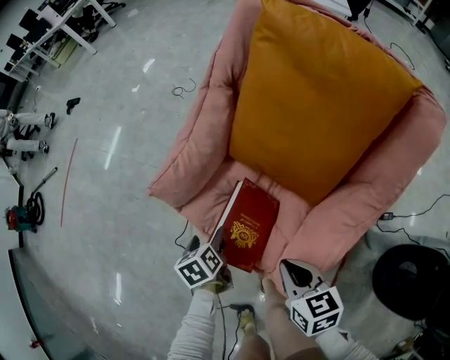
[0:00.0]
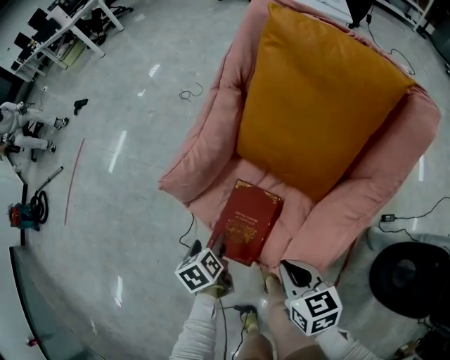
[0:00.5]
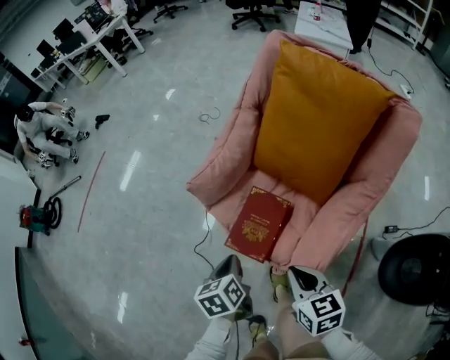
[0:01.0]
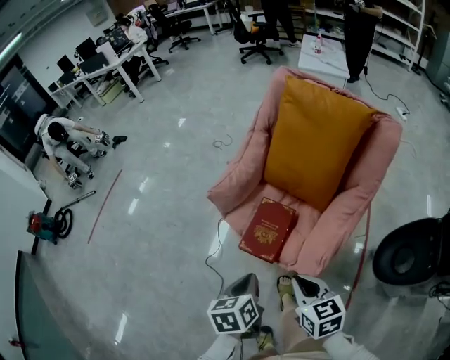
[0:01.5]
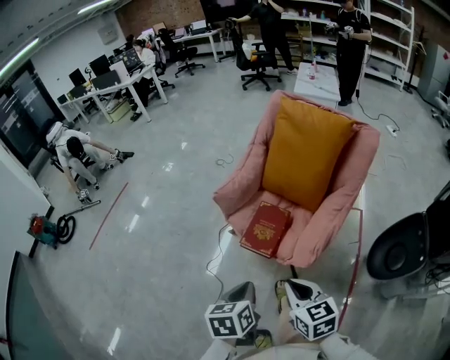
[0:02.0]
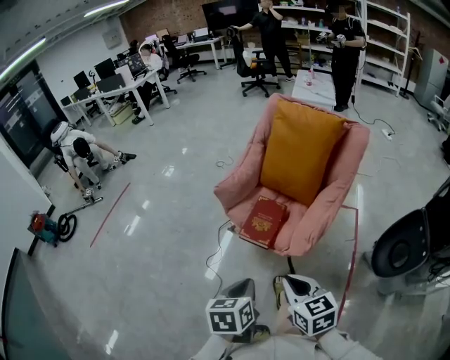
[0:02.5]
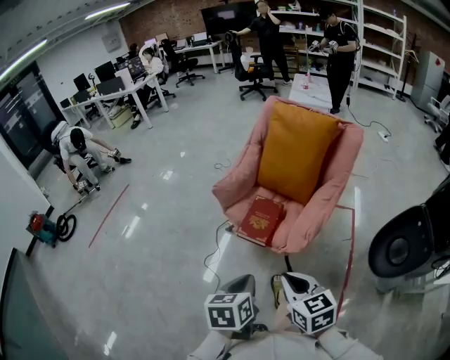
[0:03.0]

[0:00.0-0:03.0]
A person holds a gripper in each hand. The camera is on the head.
0:00.0 to 0:01.5: The left gripper moves upward and backward, some 30 cm, changes its angle by roughly 20 degrees, and closes up. Meanwhile the right gripper travels backward, upward and to the left by roughly 20 cm.
0:01.5 to 0:03.0: Both grippers travel together backward and upward, approximately 20 cm.

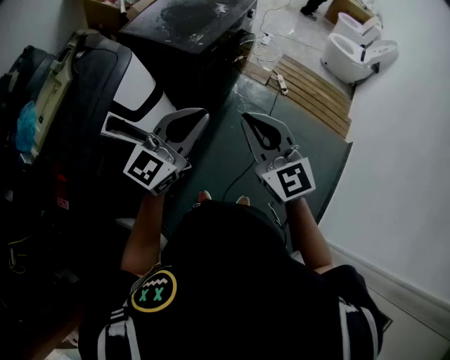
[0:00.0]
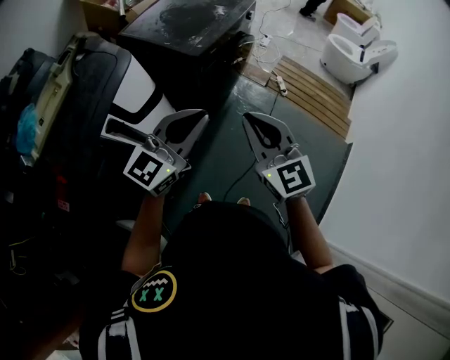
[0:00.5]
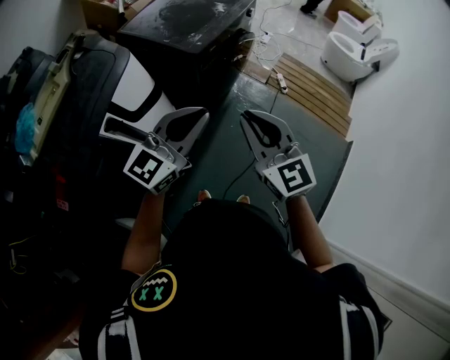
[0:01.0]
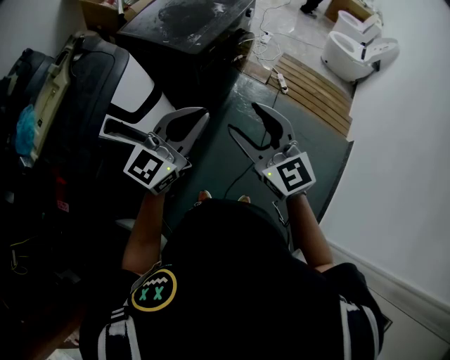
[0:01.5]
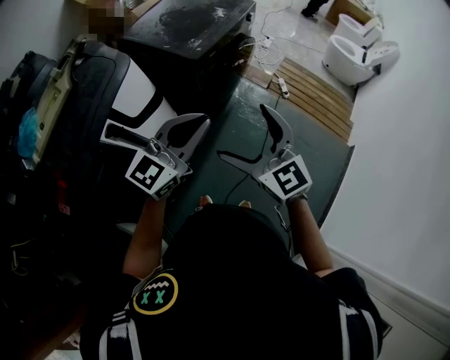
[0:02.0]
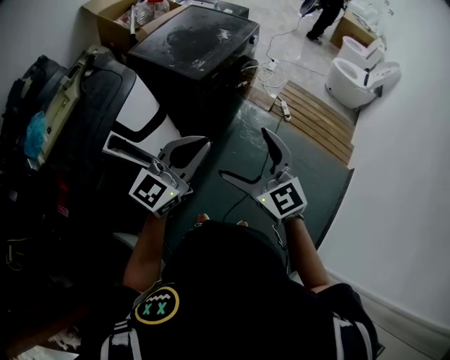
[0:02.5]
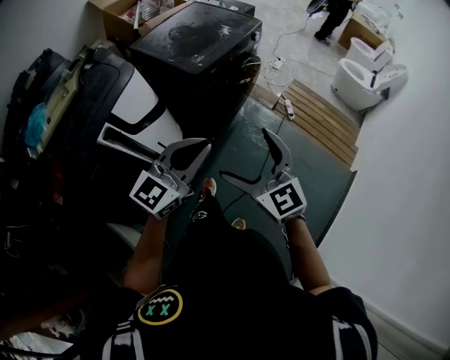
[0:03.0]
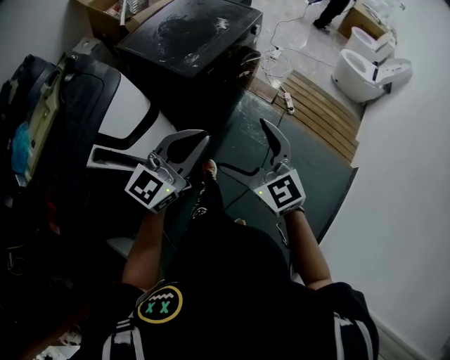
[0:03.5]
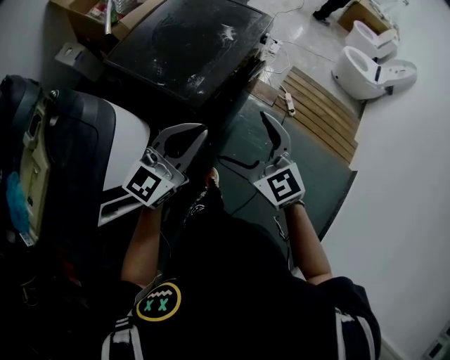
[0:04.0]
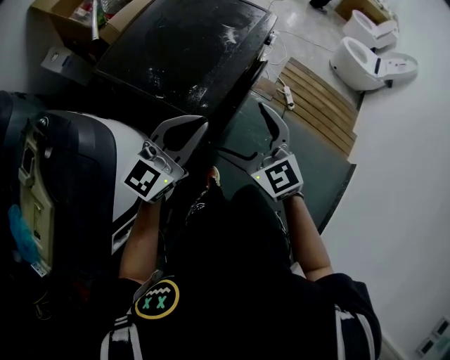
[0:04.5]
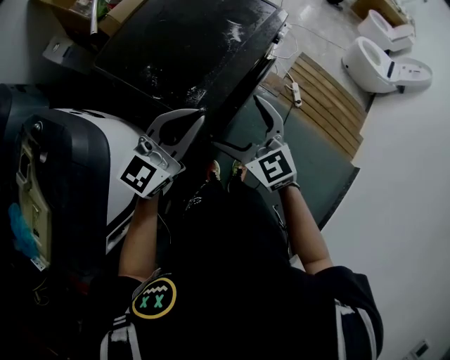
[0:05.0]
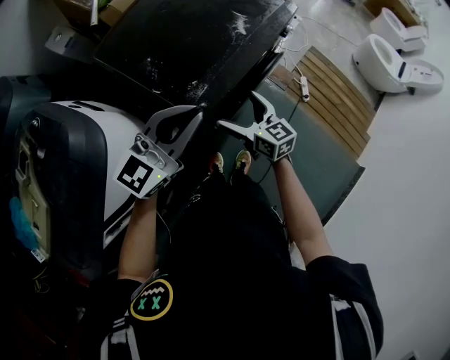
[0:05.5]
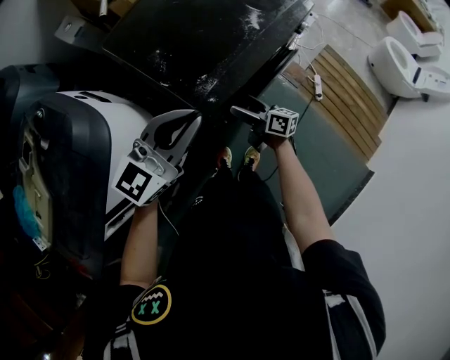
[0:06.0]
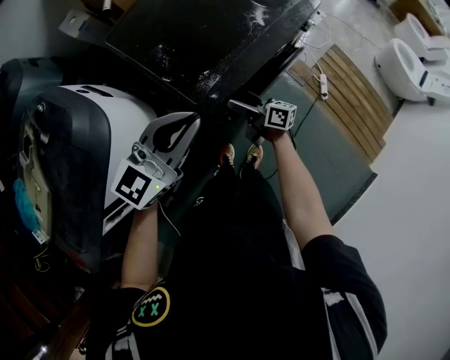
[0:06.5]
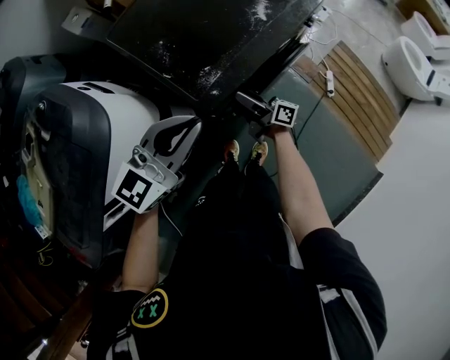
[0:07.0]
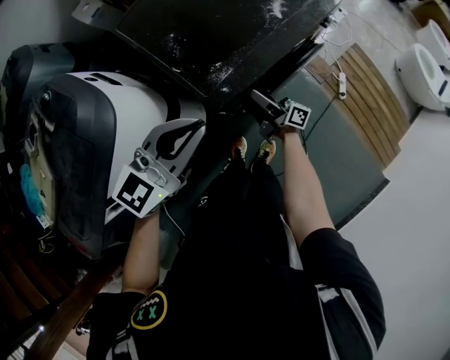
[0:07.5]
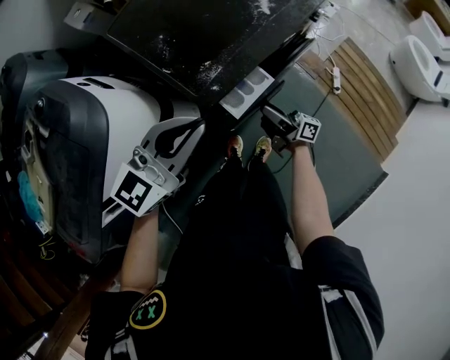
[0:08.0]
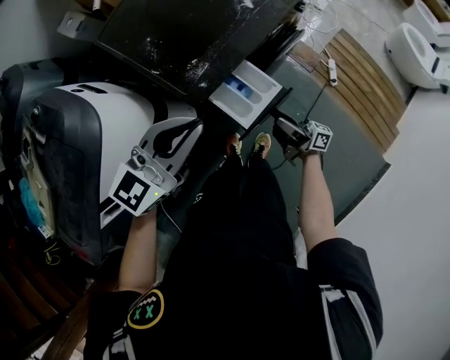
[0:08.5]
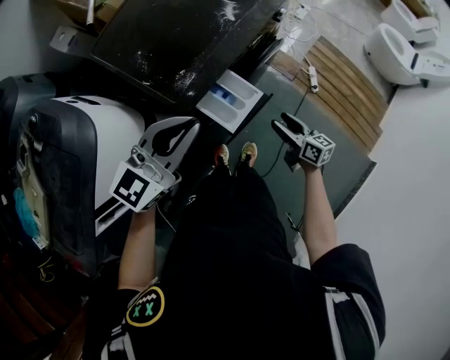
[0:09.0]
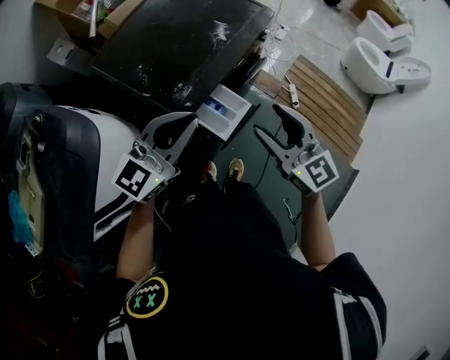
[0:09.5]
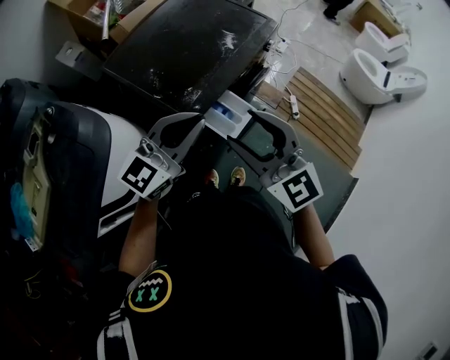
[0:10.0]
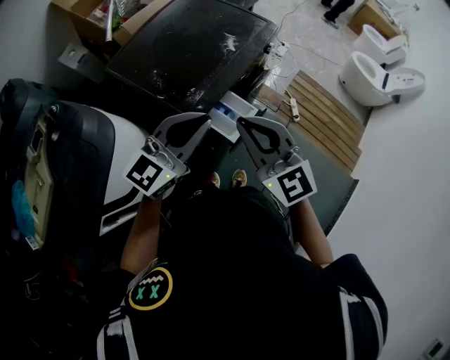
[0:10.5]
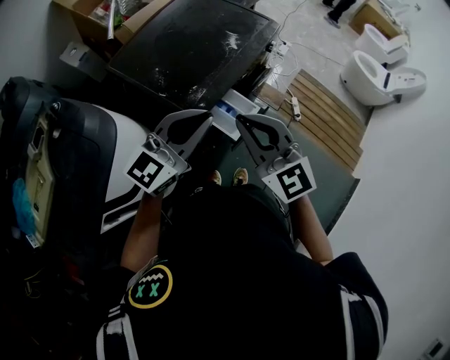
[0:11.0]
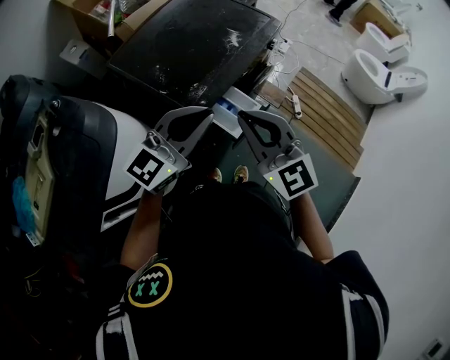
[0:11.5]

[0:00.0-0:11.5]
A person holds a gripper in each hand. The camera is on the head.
0:00.0 to 0:02.0: The right gripper opens.
0:02.0 to 0:04.0: The two grippers go about 30 cm forward.
0:04.0 to 0:06.0: The right gripper travels downward and forward by roughly 35 cm, and rolls clockwise, seen from behind, by approximately 70 degrees, while the left gripper is displaced forward by about 15 cm.
0:06.0 to 0:07.5: The right gripper changes its angle by some 30 degrees, and closes.
0:07.5 to 0:09.5: The right gripper travels upward, to the right and backward by some 35 cm, and rotates around the line of its fingers by roughly 80 degrees, counterclockwise from behind. The left gripper moves to the right and upward, some 10 cm.
0:09.5 to 0:11.5: The right gripper shifts some 10 cm to the left and upward, and closes up.

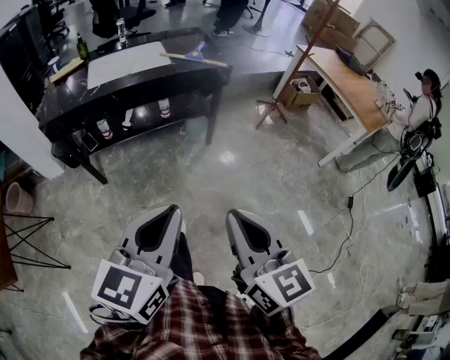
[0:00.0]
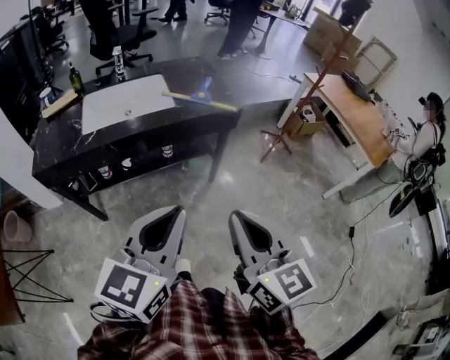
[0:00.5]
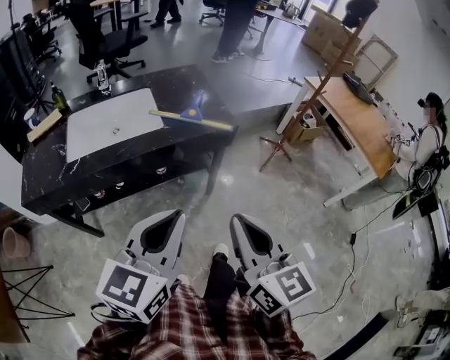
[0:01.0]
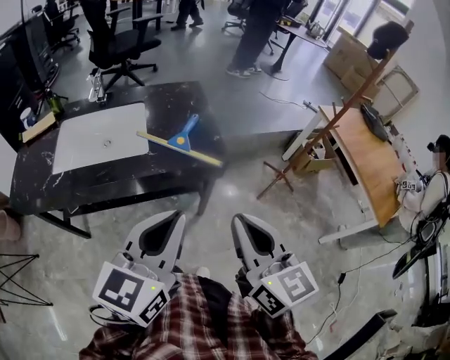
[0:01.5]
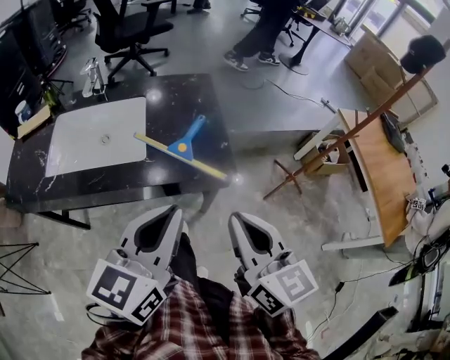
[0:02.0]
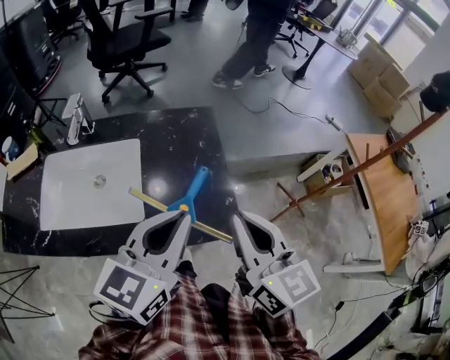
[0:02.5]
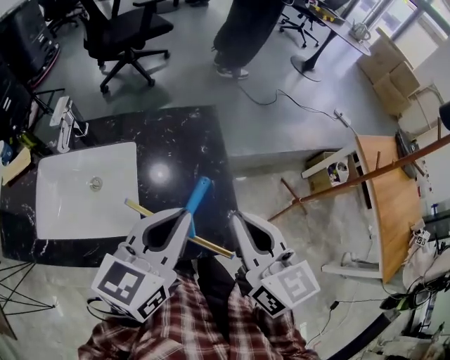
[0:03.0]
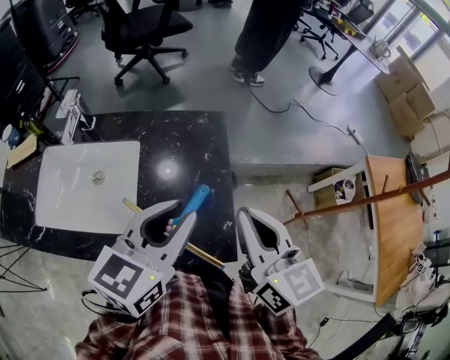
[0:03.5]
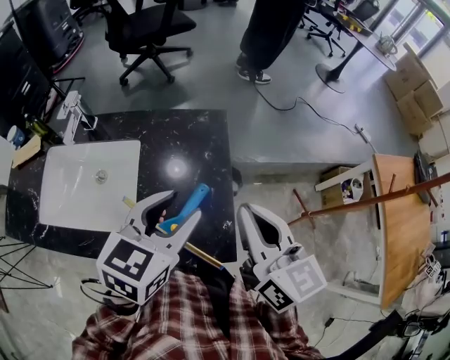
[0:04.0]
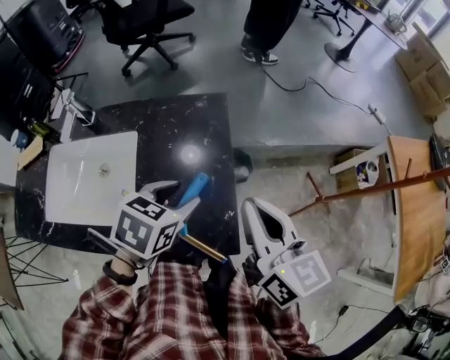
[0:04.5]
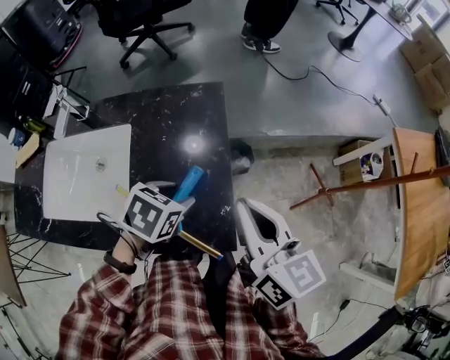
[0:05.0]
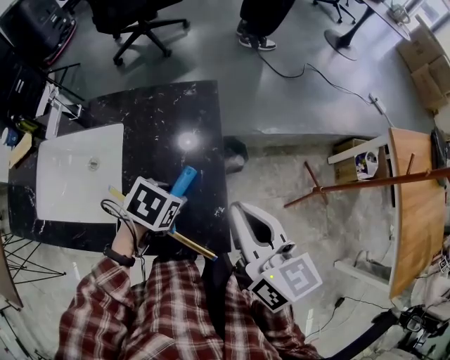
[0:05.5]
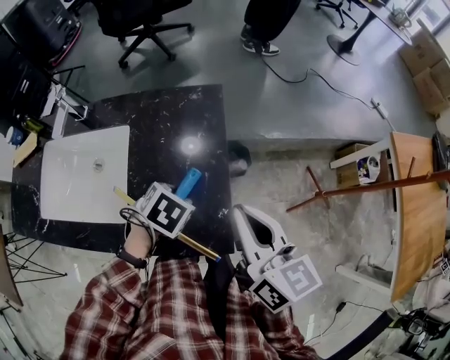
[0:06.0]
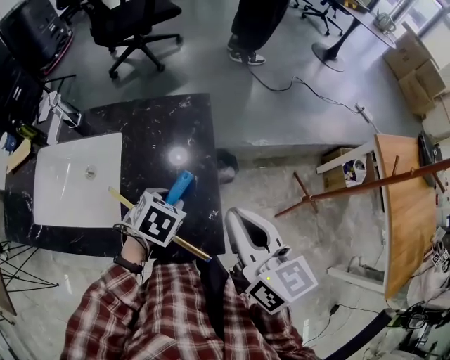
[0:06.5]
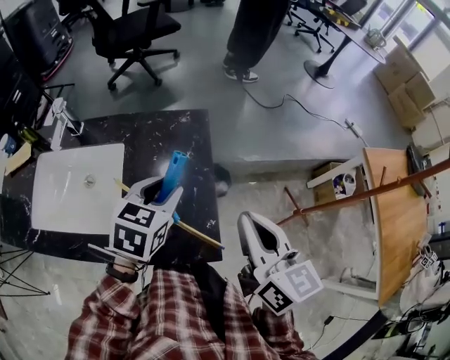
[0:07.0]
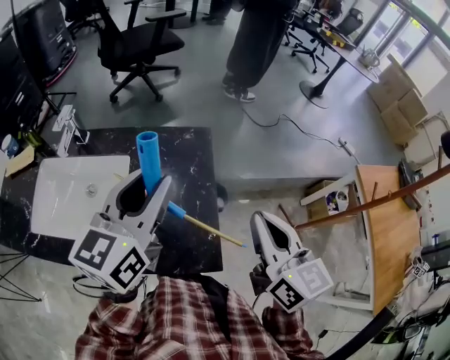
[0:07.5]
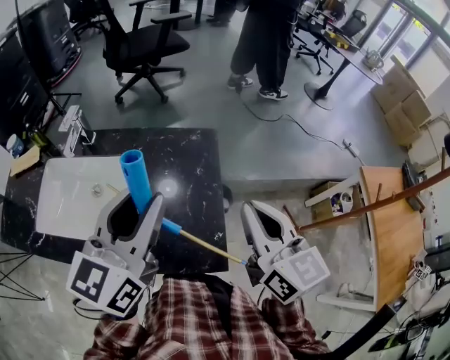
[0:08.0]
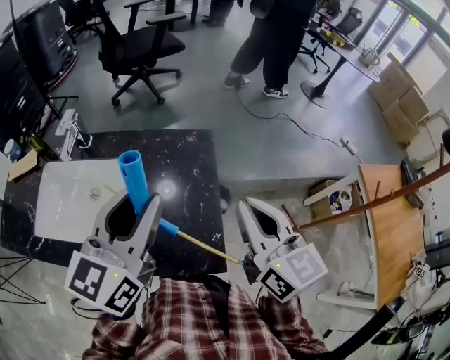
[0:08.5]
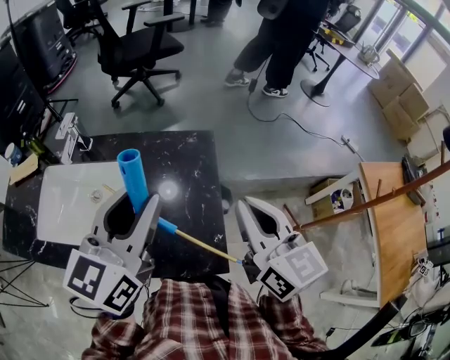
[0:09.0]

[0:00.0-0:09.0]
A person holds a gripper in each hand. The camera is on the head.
0:00.0 to 0:02.0: The two grippers travel together, forward, about 60 cm.
0:02.0 to 0:04.5: The right gripper moves forward, about 30 cm. Meanwhile the left gripper heads forward and downward, covering approximately 35 cm, points its fingers roughly 40 degrees further downward, and opens.
0:04.5 to 0:07.0: The left gripper reaches approximately 10 cm downward, then returns.
0:07.0 to 0:09.0: The right gripper heads upward, covering approximately 5 cm. The left gripper shifts approximately 15 cm upward, and tilts its fingers approximately 40 degrees upward.

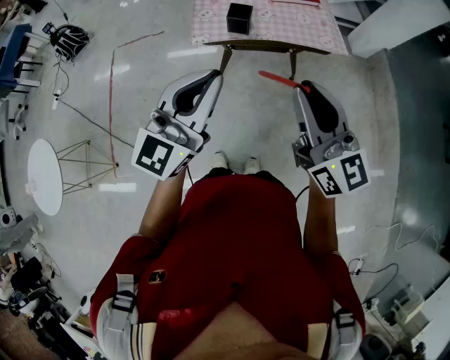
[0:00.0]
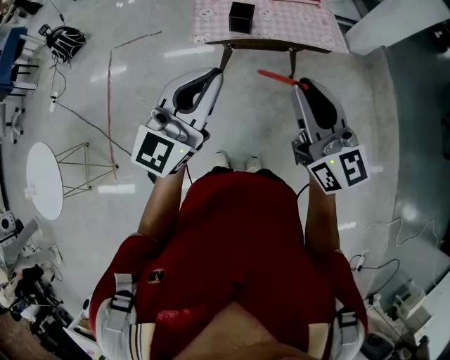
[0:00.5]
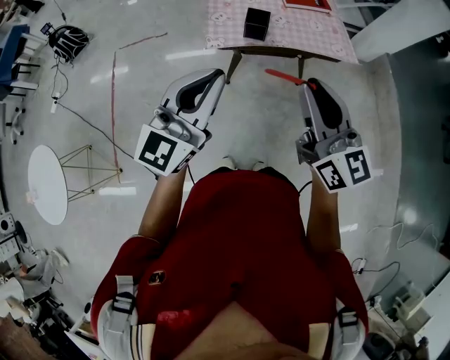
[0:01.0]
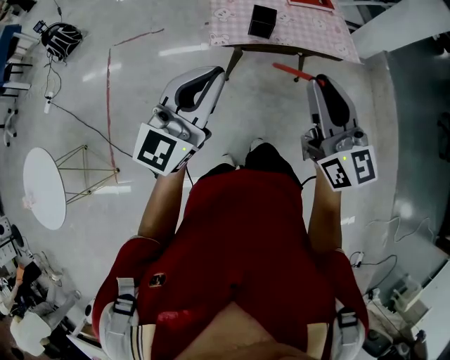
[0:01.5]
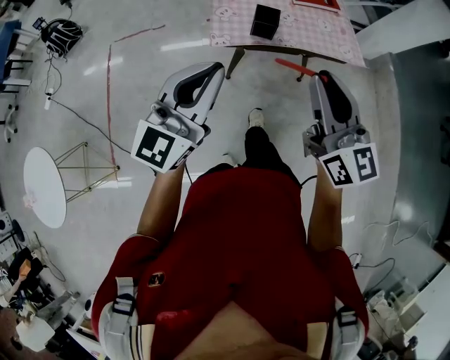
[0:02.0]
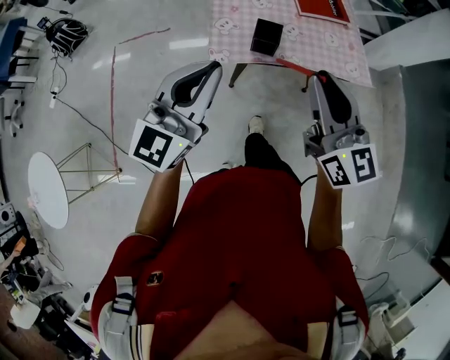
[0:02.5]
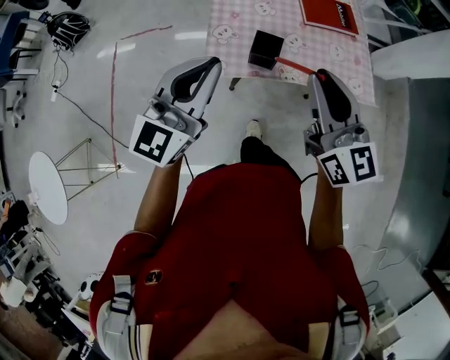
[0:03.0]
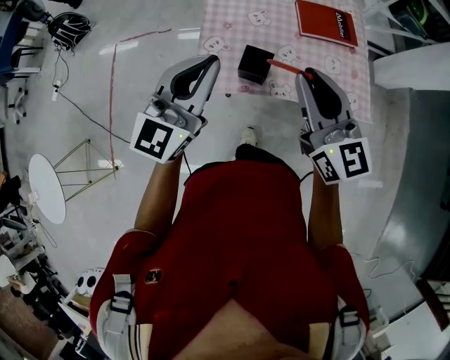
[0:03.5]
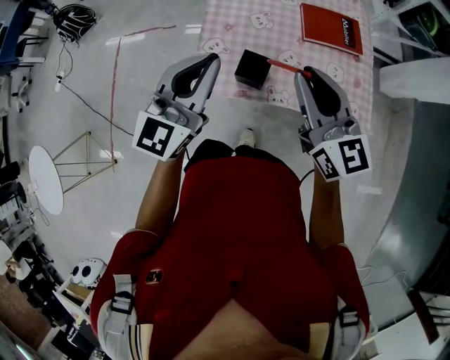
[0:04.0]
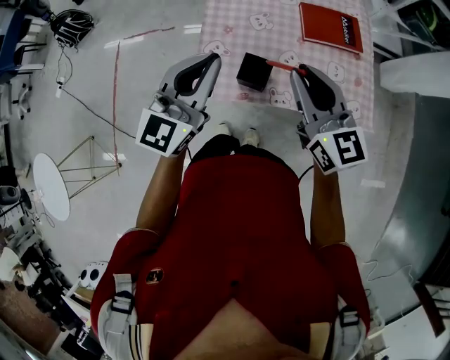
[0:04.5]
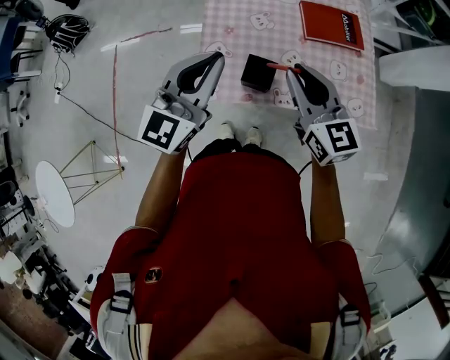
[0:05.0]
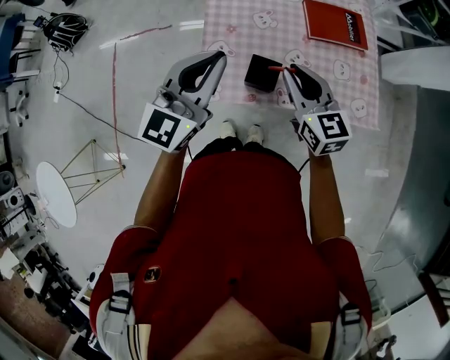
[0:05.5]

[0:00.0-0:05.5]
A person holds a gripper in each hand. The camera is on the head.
0:00.0 to 0:02.0: Both grippers move to the left and forward, roughly 15 cm.
0:02.0 to 0:03.5: The grippers both shift forward by approximately 25 cm.
0:03.5 to 0:05.5: The right gripper heads downward and forward, covering roughly 15 cm. The left gripper heads forward, covering about 10 cm.
